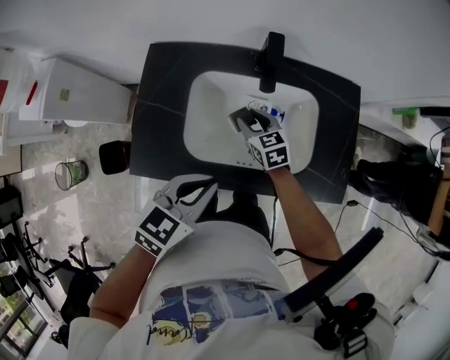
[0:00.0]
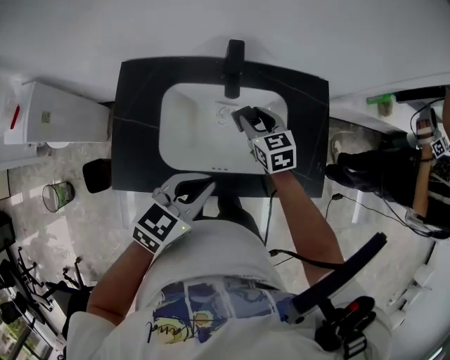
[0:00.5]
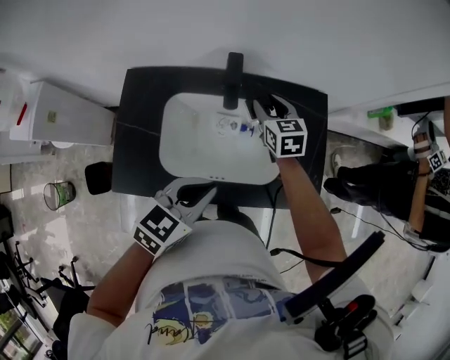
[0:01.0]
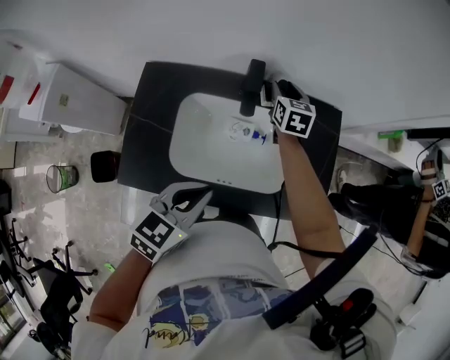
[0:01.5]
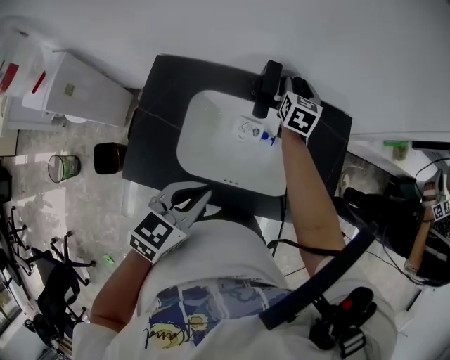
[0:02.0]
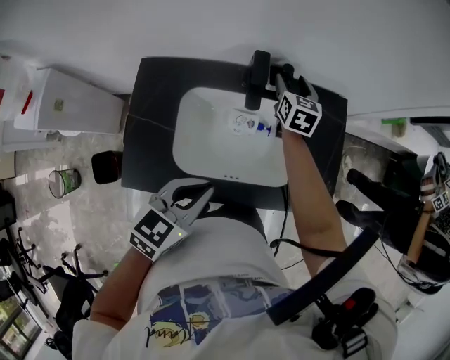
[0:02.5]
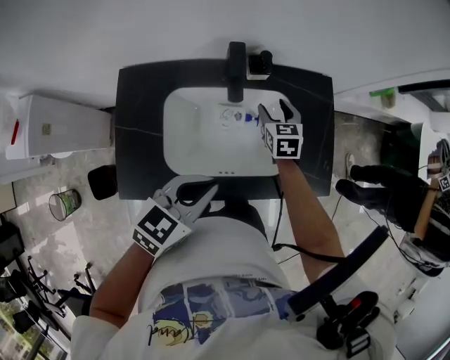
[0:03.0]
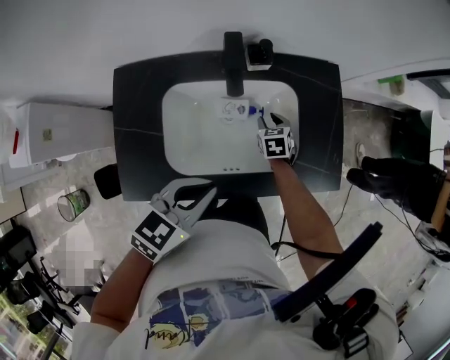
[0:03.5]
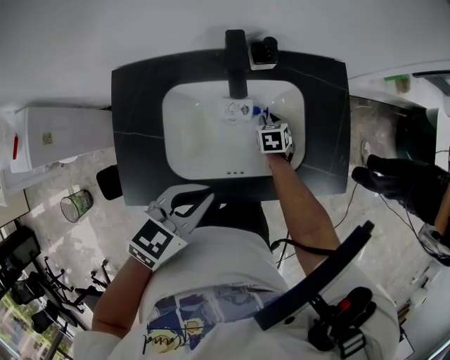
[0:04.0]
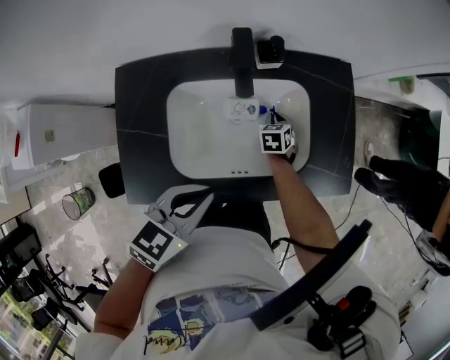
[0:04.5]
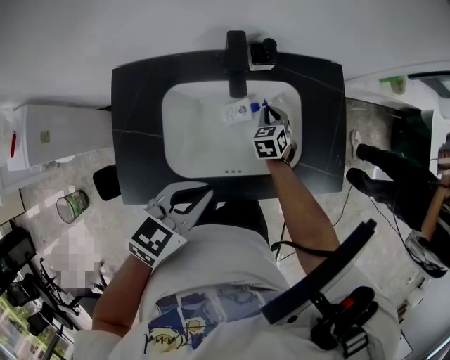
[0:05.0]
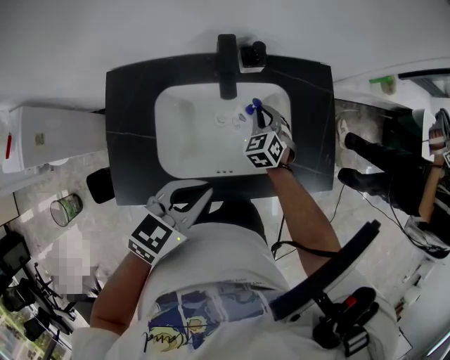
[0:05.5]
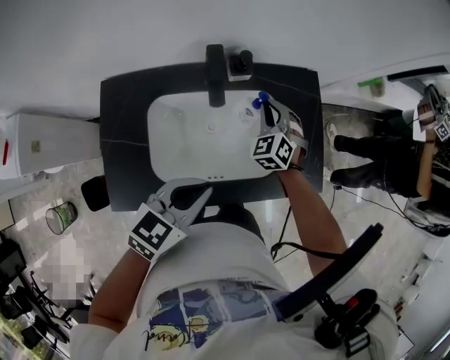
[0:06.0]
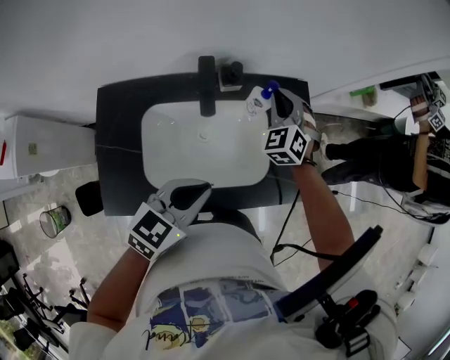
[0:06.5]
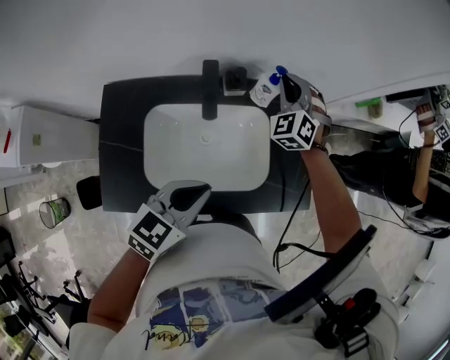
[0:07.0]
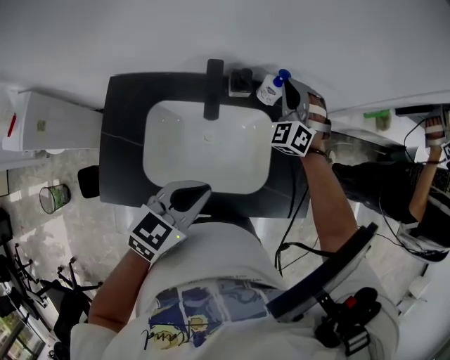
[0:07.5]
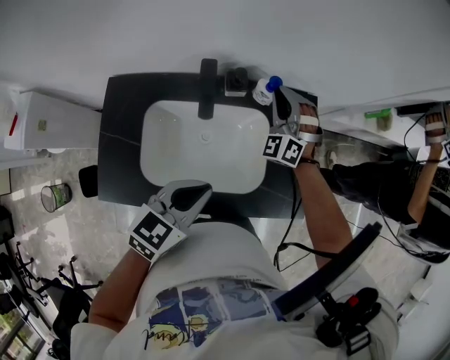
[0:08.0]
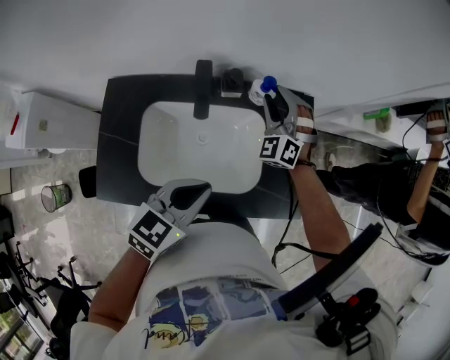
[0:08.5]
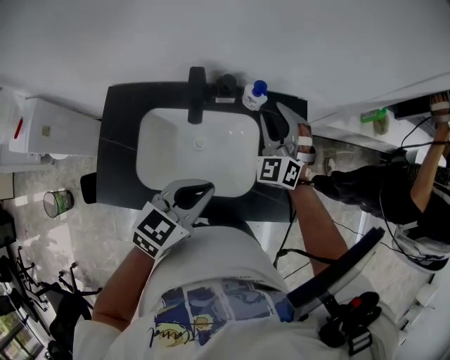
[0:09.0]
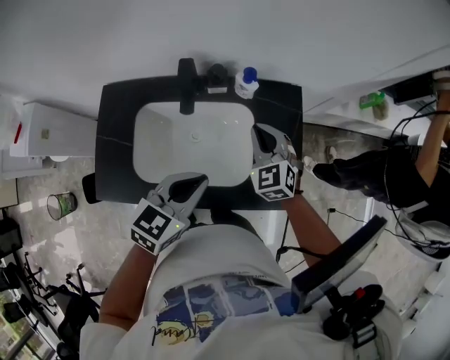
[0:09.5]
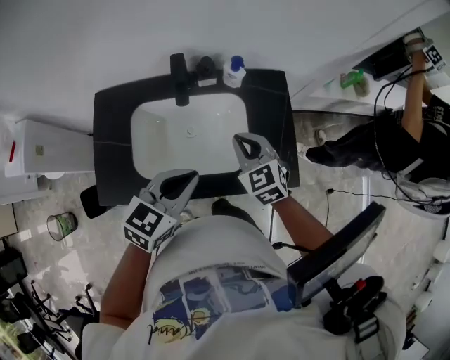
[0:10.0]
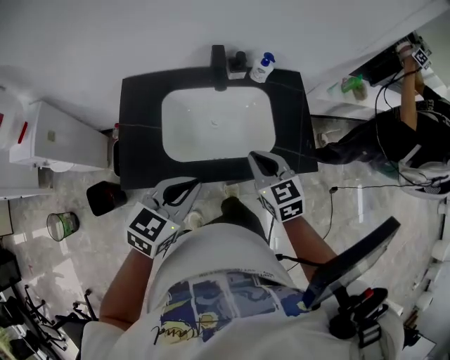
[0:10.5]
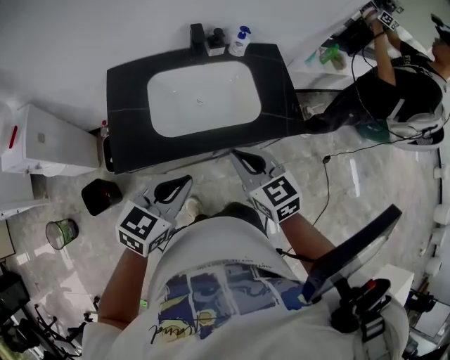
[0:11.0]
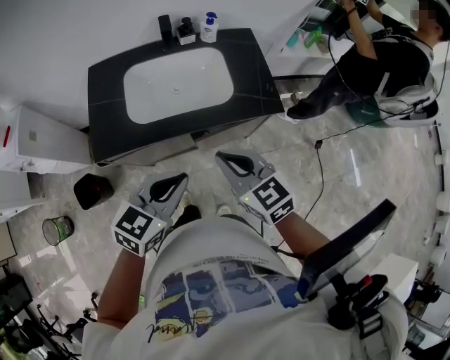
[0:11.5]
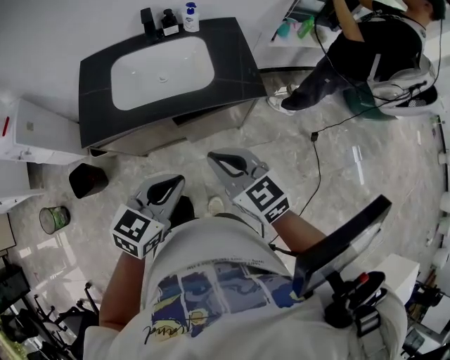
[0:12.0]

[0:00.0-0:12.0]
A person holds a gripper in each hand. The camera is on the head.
0:00.0 to 0:02.0: The right gripper heads forward and upward, covering approximately 25 cm, and rotates roughly 30 degrees.
0:02.0 to 0:04.0: The right gripper goes some 30 cm downward, backward and to the right, points its fingers roughly 30 degrees further downward, and opens and closes again.
0:04.0 to 0:06.0: The right gripper travels upward by some 20 cm, and rolls counterclockwise, seen from behind, by some 40 degrees.
0:06.0 to 0:08.0: The left gripper shifts by roughly 5 cm. Meanwhile the right gripper moves upward and forward, some 10 cm, and changes its angle by about 30 degrees.
0:08.0 to 0:10.0: The right gripper moves backward, roughly 20 cm, rolls clockwise, seen from behind, by about 40 degrees, and opens and closes again.
0:10.0 to 0:12.0: Both grippers move backward, some 35 cm. The right gripper turns by roughly 20 degrees.

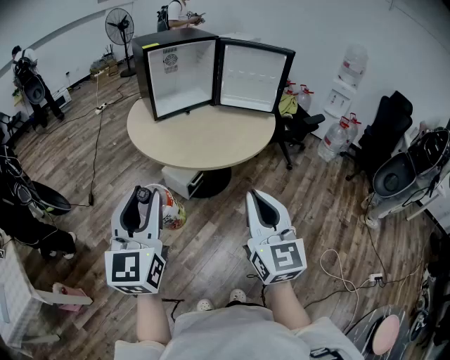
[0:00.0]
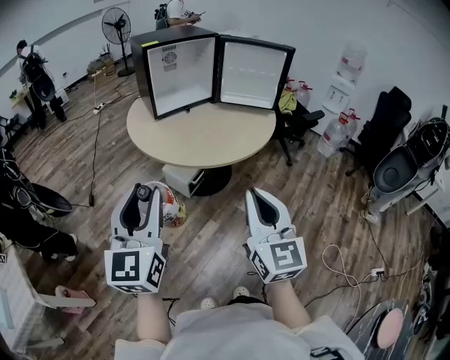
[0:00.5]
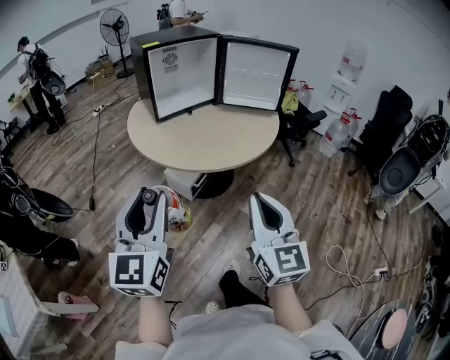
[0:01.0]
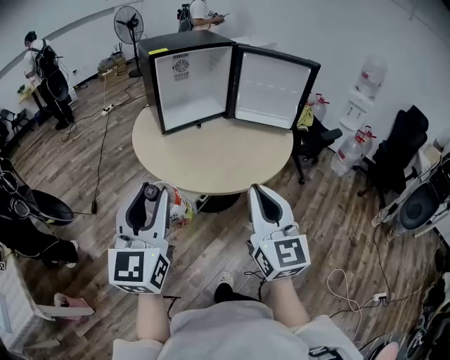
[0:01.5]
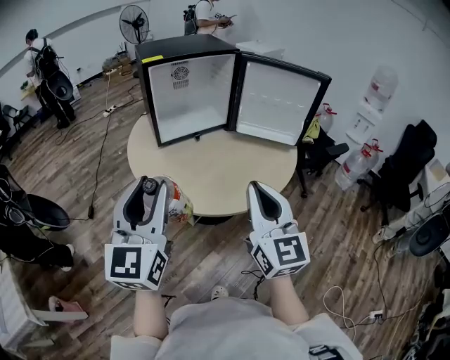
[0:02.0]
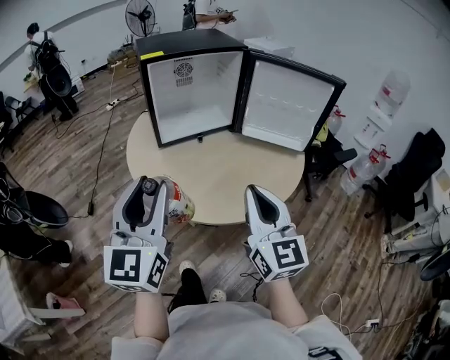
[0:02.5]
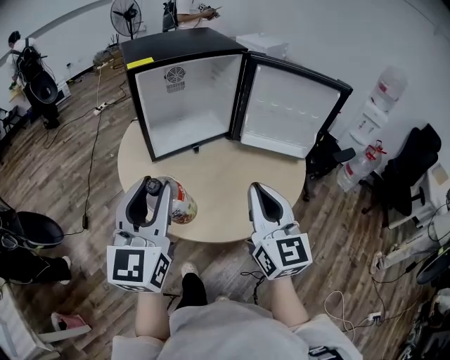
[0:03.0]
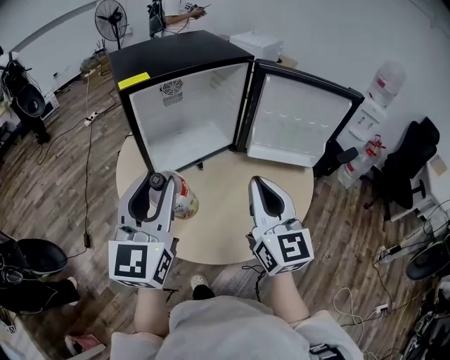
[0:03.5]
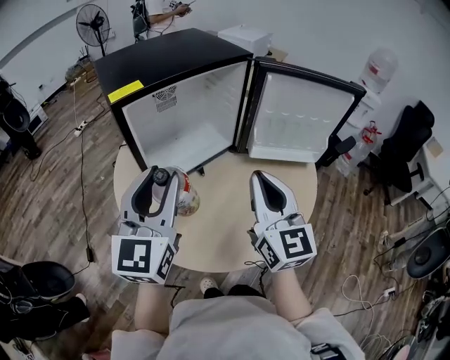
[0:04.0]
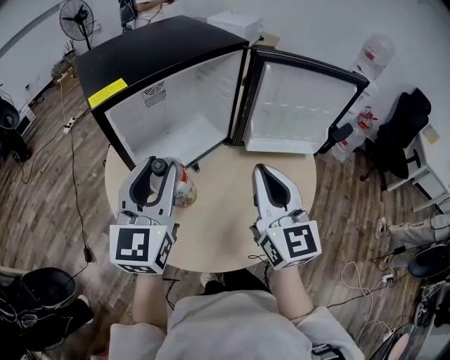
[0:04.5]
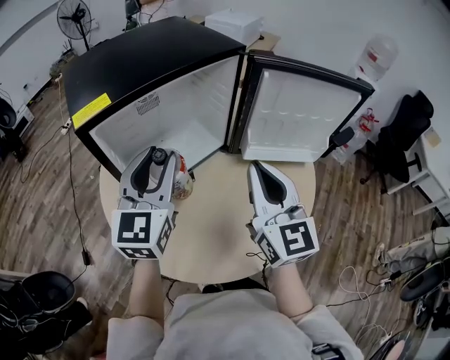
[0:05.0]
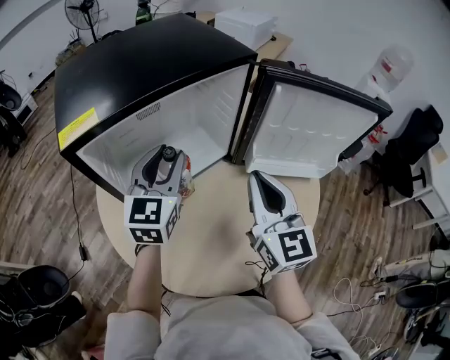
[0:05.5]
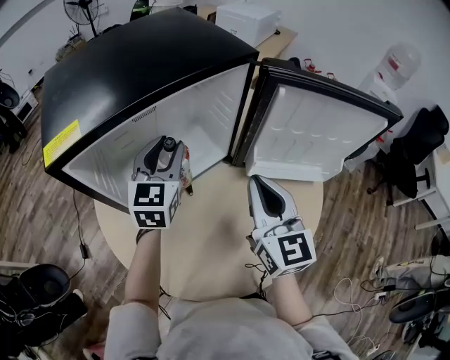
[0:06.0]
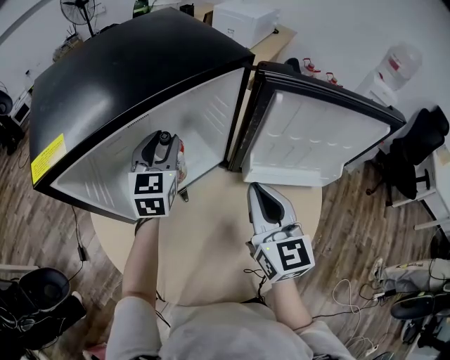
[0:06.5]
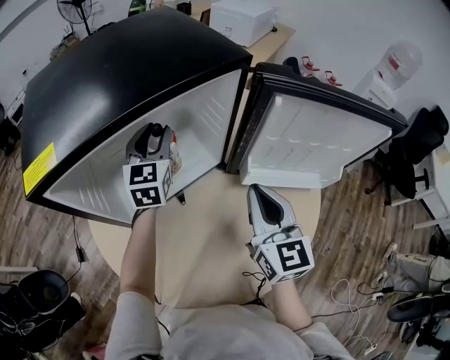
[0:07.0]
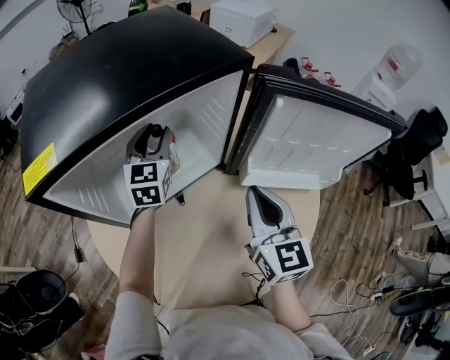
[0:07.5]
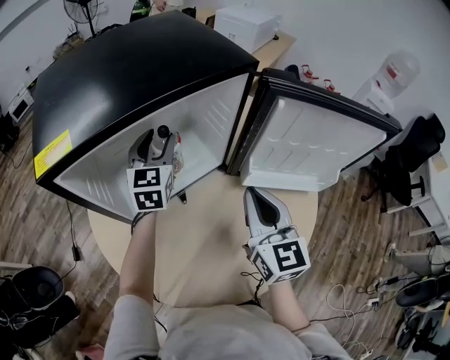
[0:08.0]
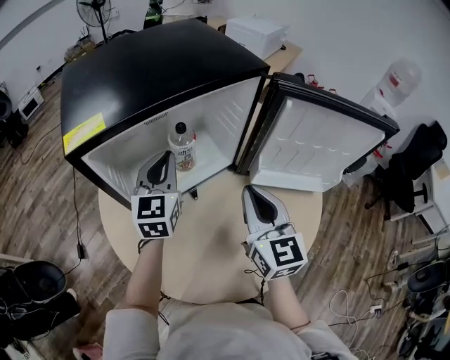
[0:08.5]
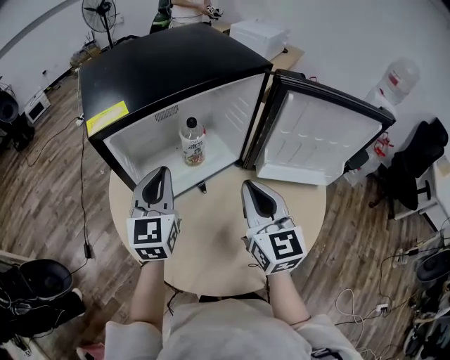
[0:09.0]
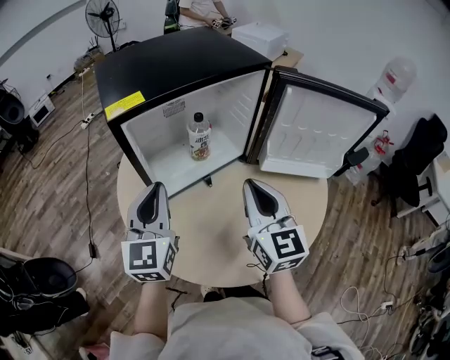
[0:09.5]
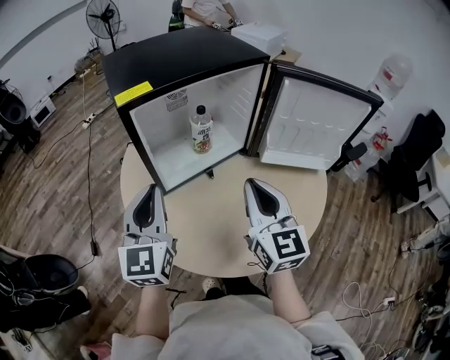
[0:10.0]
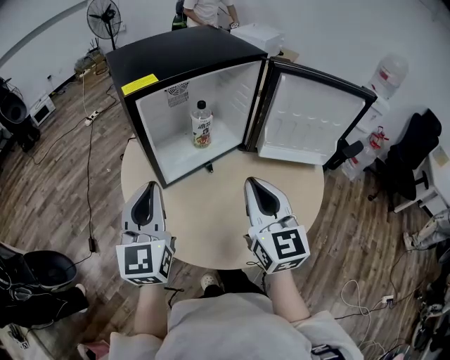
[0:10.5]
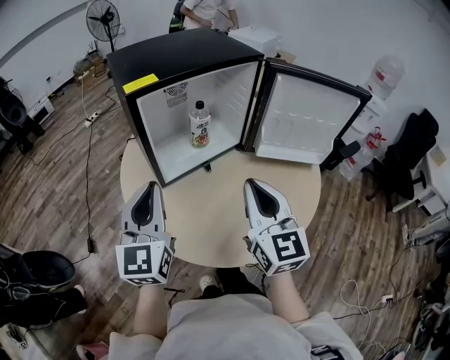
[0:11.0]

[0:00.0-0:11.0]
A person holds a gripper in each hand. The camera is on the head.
0:00.0 to 0:02.0: The two grippers go roughly 25 cm forward.
0:02.0 to 0:03.5: Both grippers move forward, approximately 25 cm.
0:03.5 to 0:05.5: The right gripper goes about 20 cm forward; the left gripper shifts about 25 cm forward.
0:05.5 to 0:07.5: The right gripper goes approximately 10 cm downward and forward. Meanwhile the left gripper goes approximately 15 cm forward and downward.
0:07.5 to 0:09.0: The right gripper travels to the left and backward by approximately 10 cm; the left gripper heads backward, covering about 20 cm, and closes up.
0:09.0 to 0:11.0: The grippers both shift backward by approximately 15 cm.

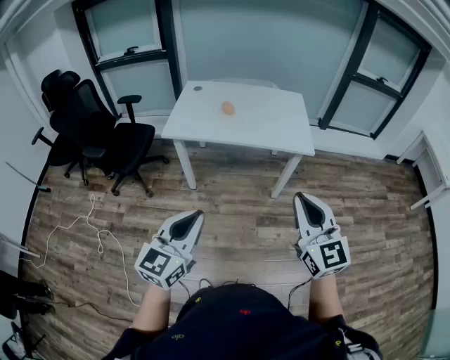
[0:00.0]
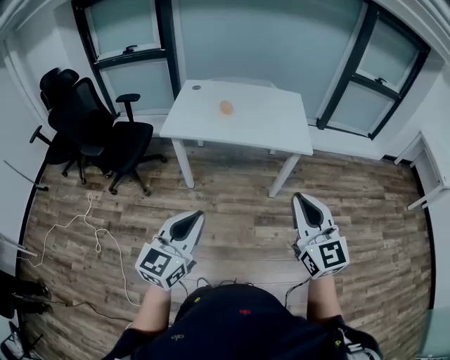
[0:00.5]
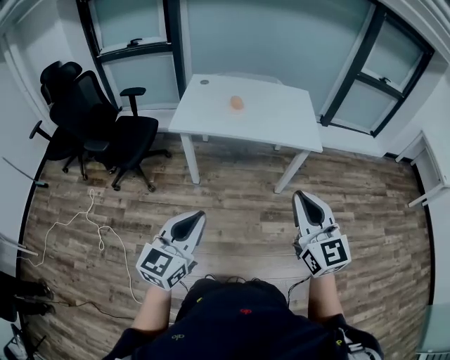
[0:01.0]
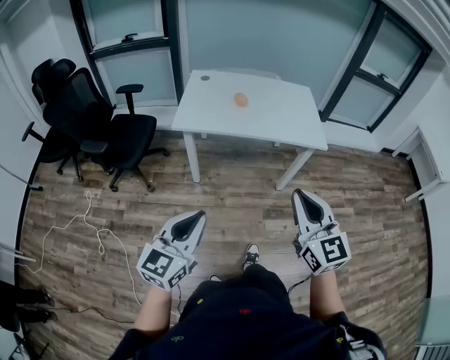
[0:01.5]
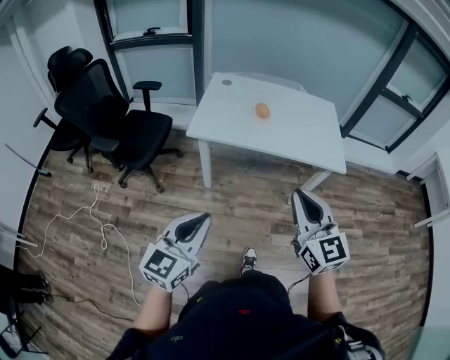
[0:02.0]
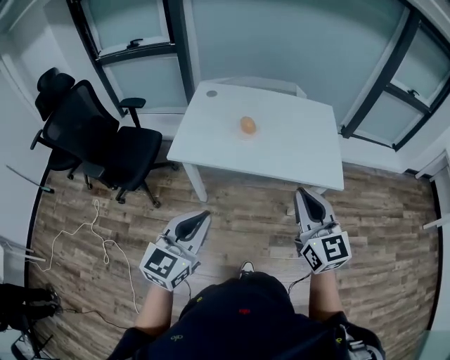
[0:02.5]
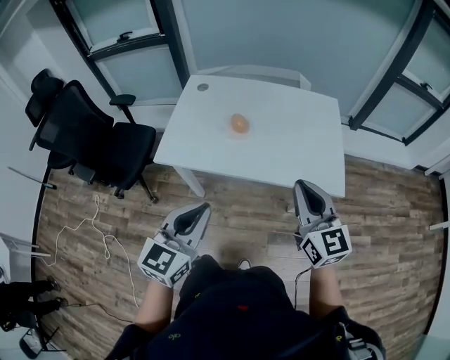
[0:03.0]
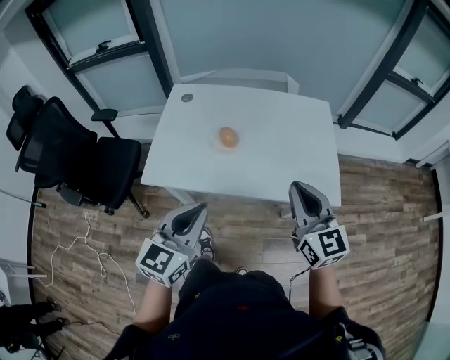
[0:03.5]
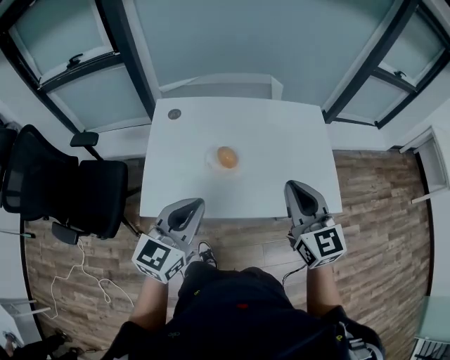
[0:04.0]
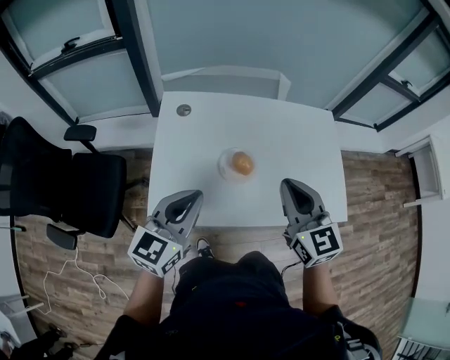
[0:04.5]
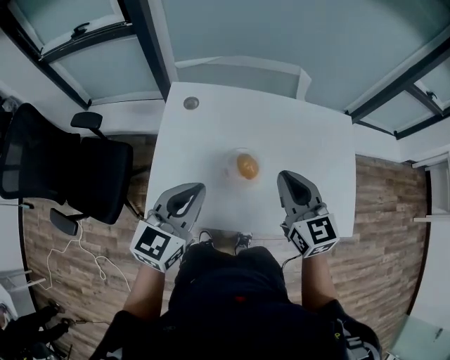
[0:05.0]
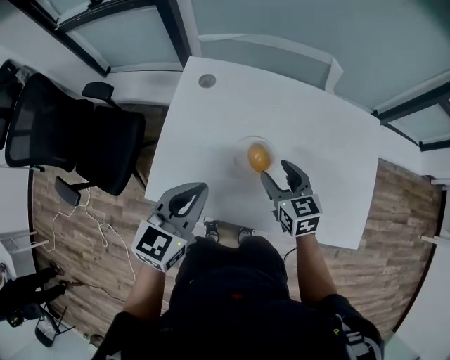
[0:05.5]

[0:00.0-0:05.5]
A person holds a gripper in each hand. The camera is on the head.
0:00.0 to 0:02.0: The grippers both shift to the left and forward by roughly 20 cm.
0:02.0 to 0:03.5: Both grippers move forward, some 35 cm.
0:03.5 to 0:05.5: The left gripper travels forward and to the left by about 30 cm; the right gripper heads forward, downward and to the left, covering roughly 40 cm, rotates roughly 30 degrees, and opens its fingers.
